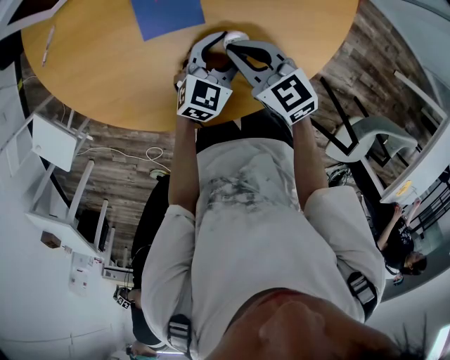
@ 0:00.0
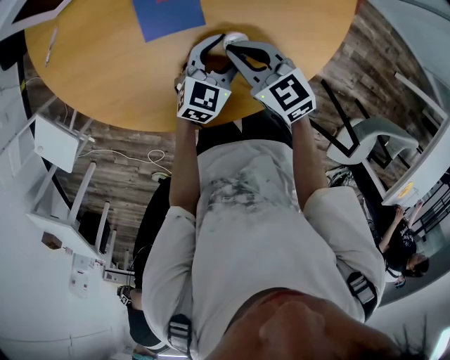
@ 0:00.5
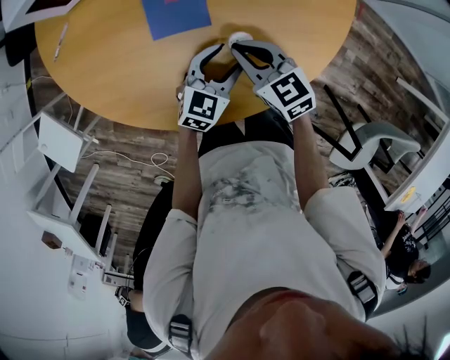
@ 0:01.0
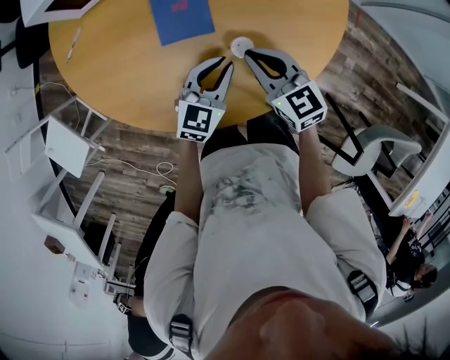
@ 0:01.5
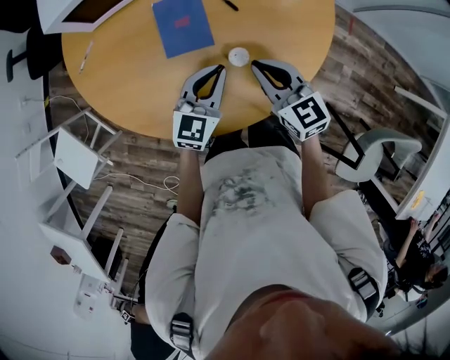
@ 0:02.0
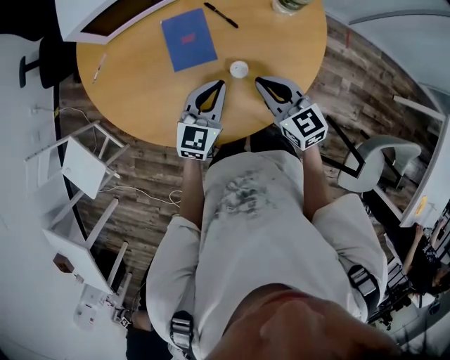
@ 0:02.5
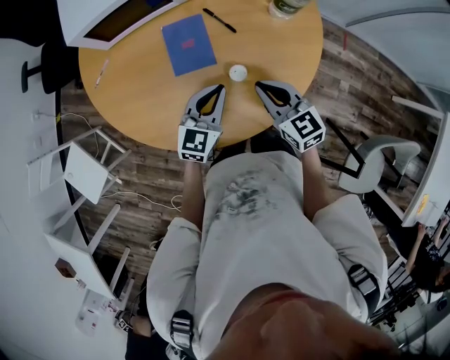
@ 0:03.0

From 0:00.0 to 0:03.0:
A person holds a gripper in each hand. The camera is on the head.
From 0:00.0 to 0:01.5: The left gripper travels upward by some 5 cm, and closes up.
From 0:01.5 to 0:03.0: Both grippers travel together upward, some 10 cm.

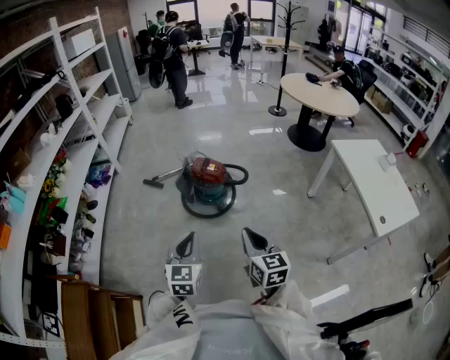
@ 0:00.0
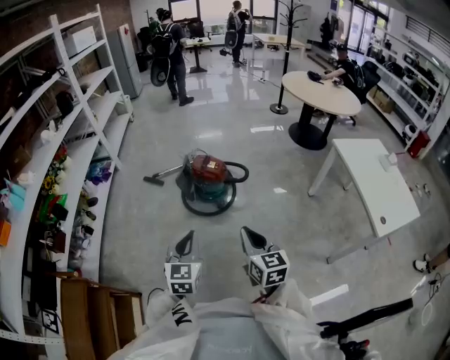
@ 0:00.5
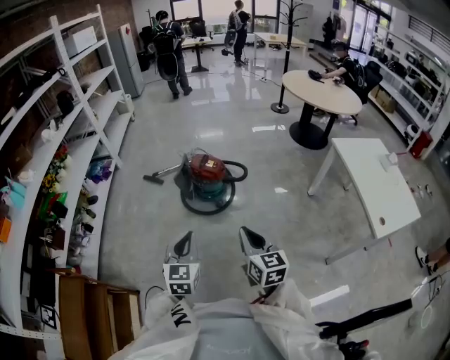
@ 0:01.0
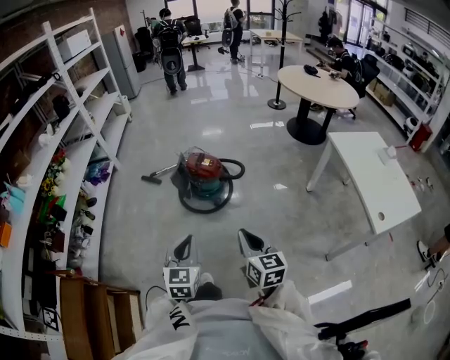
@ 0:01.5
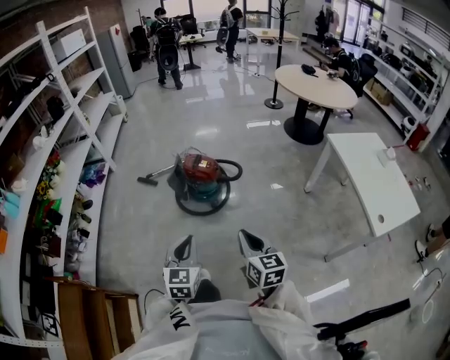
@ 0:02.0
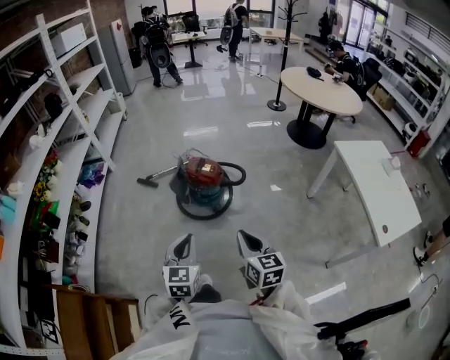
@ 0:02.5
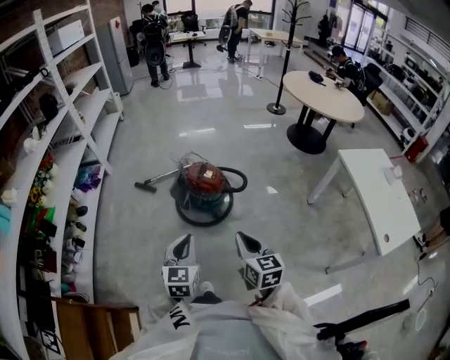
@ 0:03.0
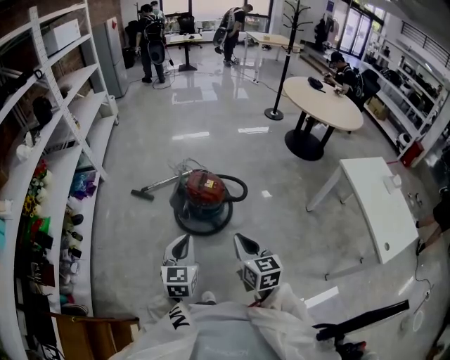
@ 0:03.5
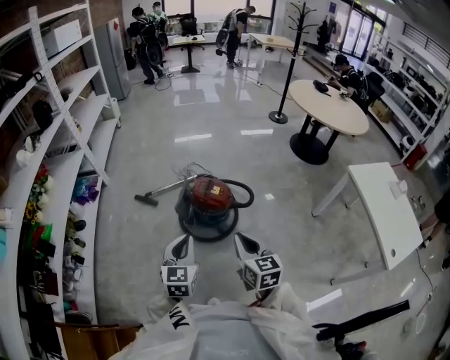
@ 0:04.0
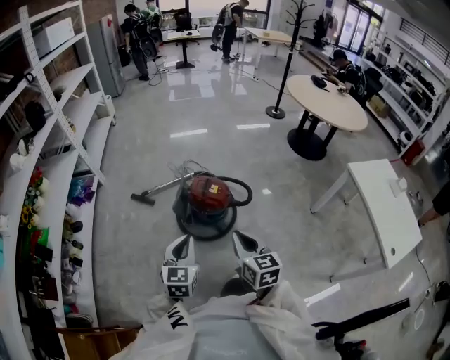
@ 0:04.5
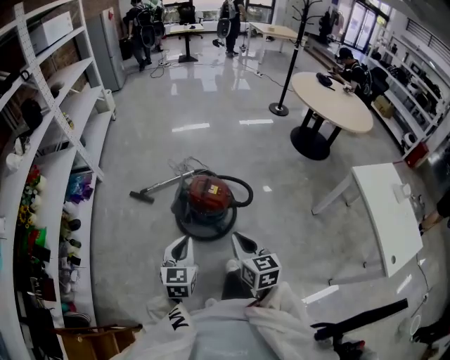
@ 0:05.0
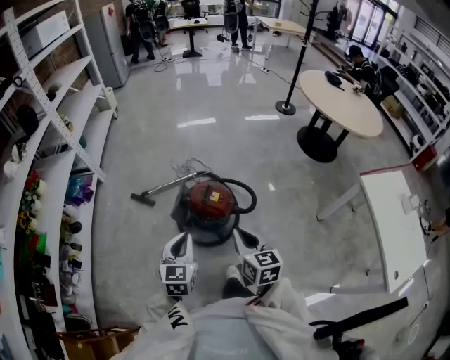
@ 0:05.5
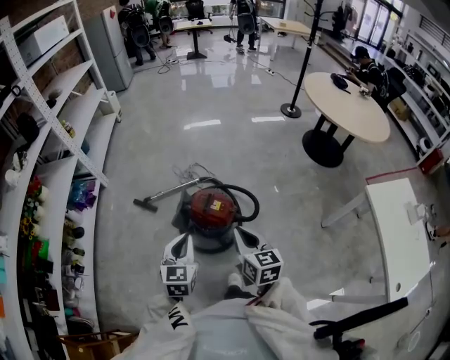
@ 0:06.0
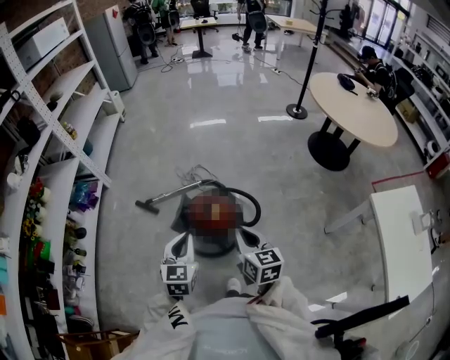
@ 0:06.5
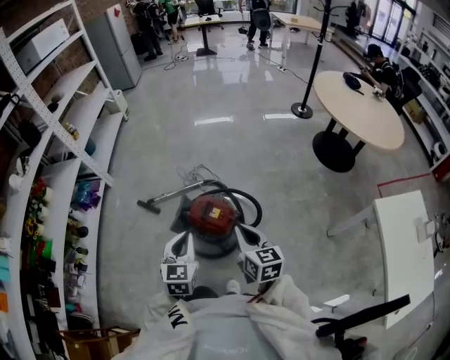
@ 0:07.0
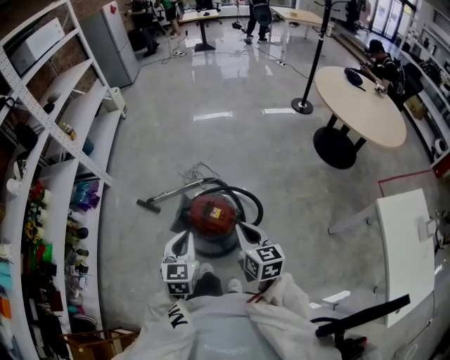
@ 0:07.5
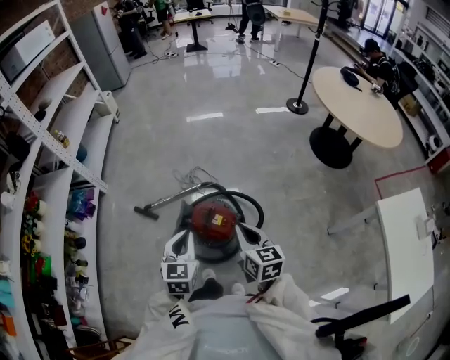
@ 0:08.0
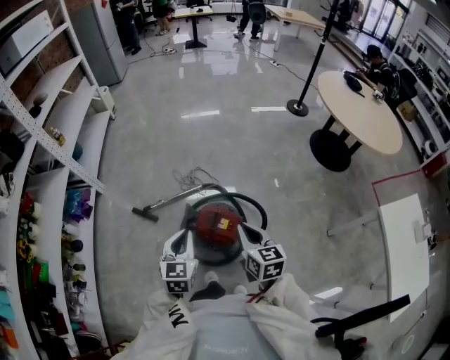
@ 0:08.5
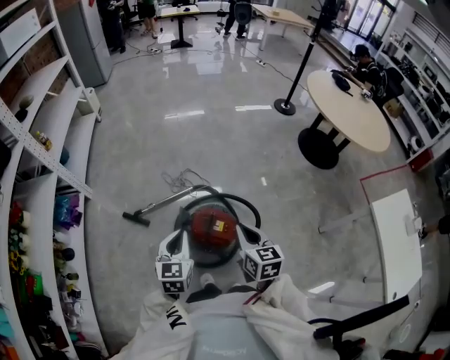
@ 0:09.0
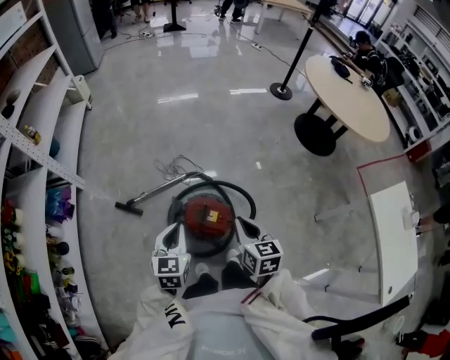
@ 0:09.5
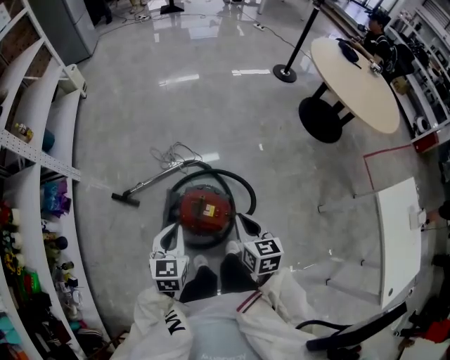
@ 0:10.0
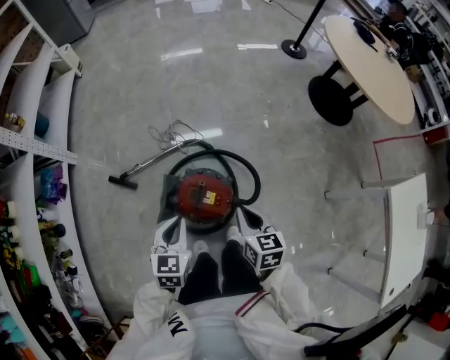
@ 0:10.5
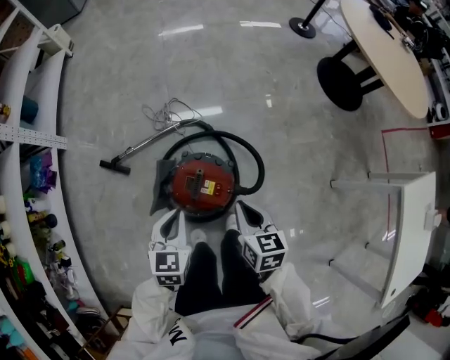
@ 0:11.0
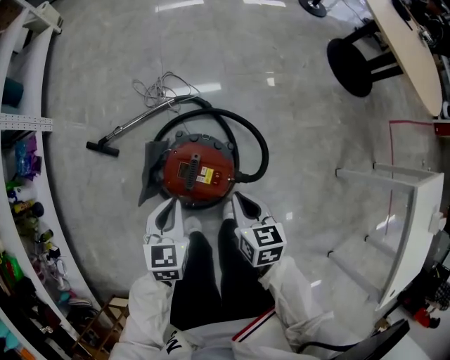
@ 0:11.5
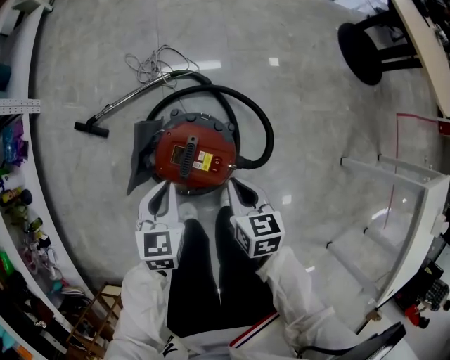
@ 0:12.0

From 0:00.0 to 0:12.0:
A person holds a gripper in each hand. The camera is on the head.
From 0:00.0 to 0:02.0: The grippers stay close to where they were, moving slightly.
From 0:02.0 to 0:04.0: Both grippers travel together forward and to the left, approximately 25 cm.
From 0:04.0 to 0:06.0: Both grippers travel together forward, approximately 15 cm.
From 0:06.0 to 0:08.0: Both grippers move forward, about 10 cm.
From 0:08.0 to 0:10.0: The left gripper is displaced forward and downward by roughly 10 cm; the right gripper shifts approximately 10 cm downward and forward.
From 0:10.0 to 0:12.0: The two grippers go some 20 cm downward.

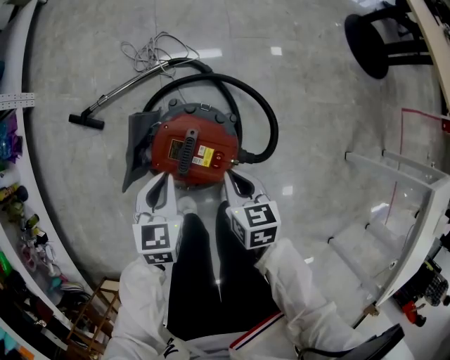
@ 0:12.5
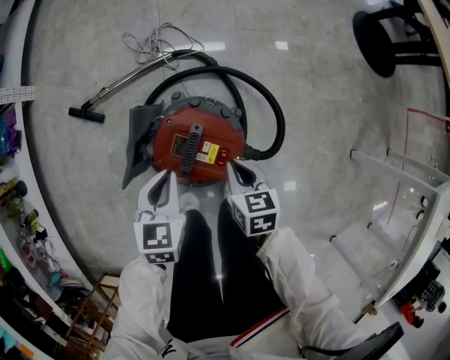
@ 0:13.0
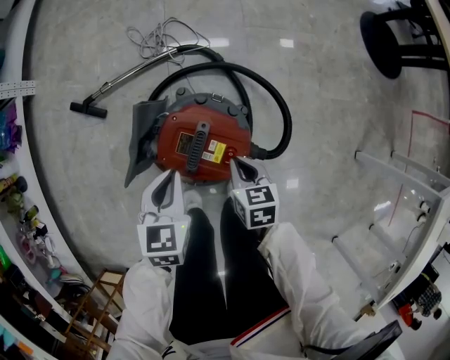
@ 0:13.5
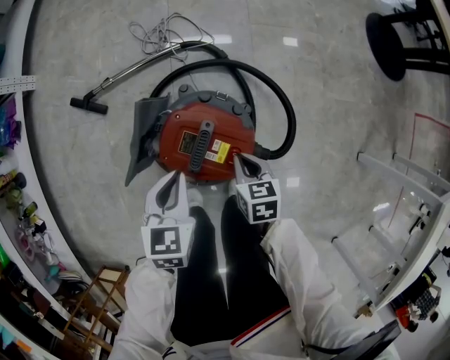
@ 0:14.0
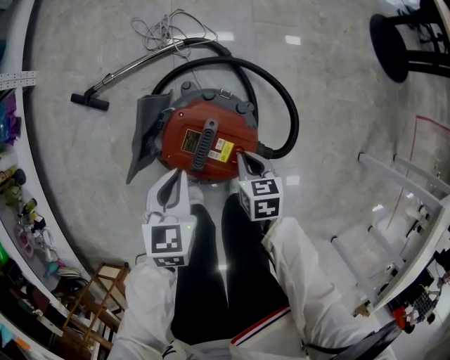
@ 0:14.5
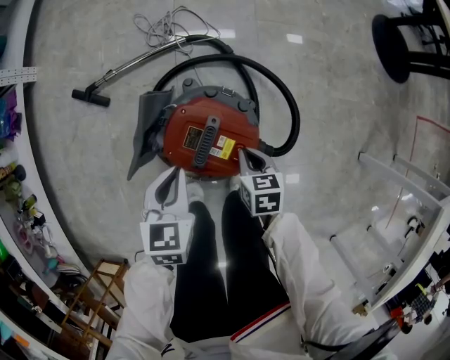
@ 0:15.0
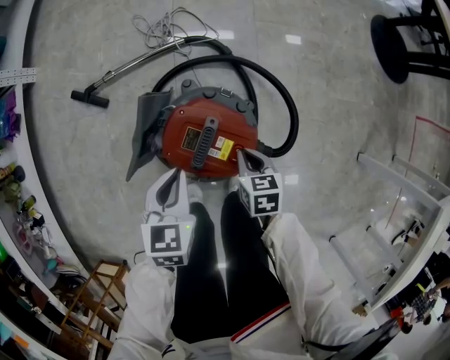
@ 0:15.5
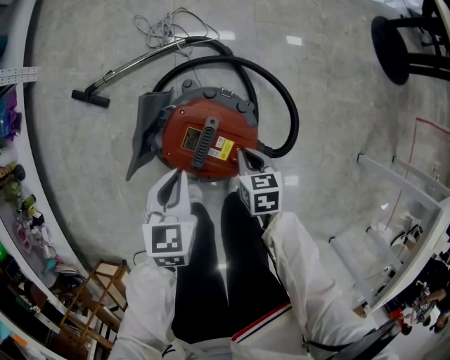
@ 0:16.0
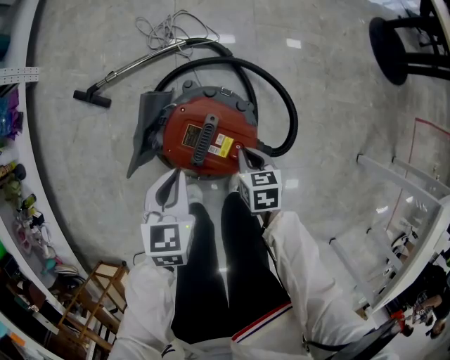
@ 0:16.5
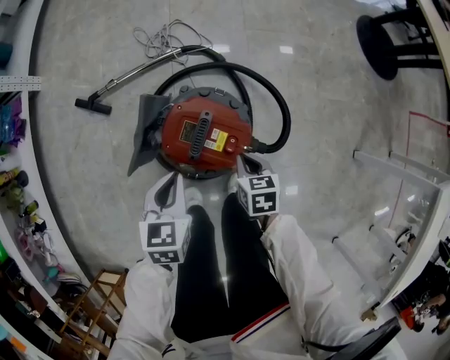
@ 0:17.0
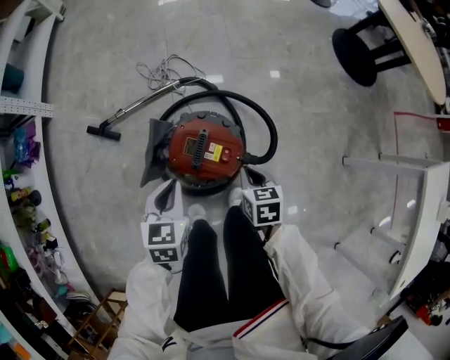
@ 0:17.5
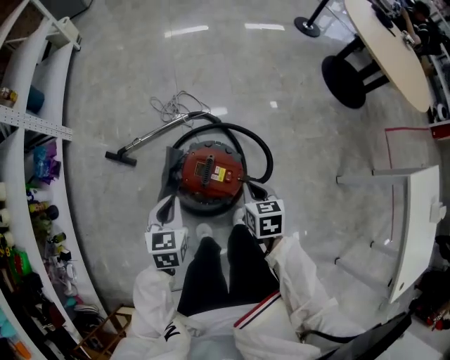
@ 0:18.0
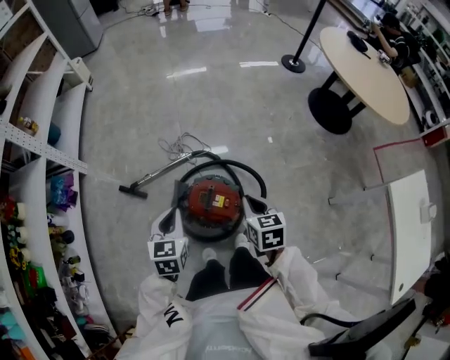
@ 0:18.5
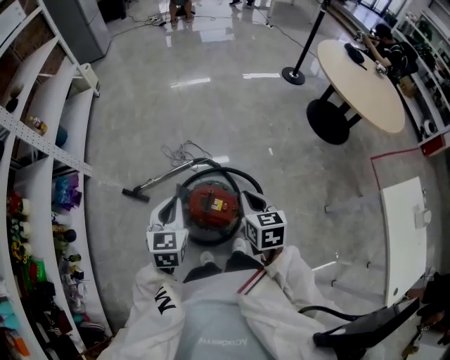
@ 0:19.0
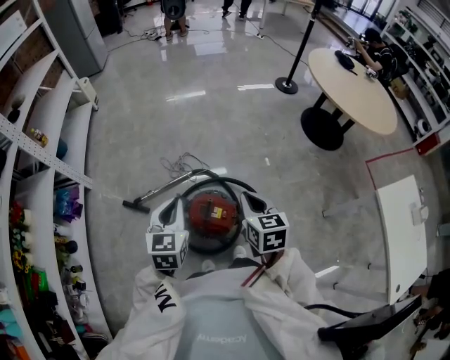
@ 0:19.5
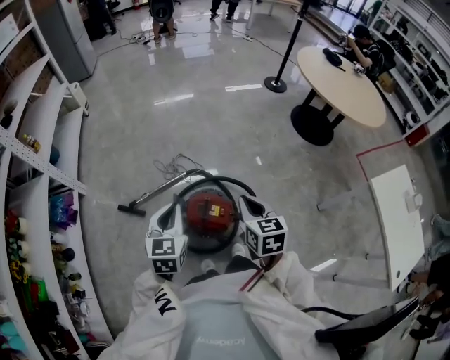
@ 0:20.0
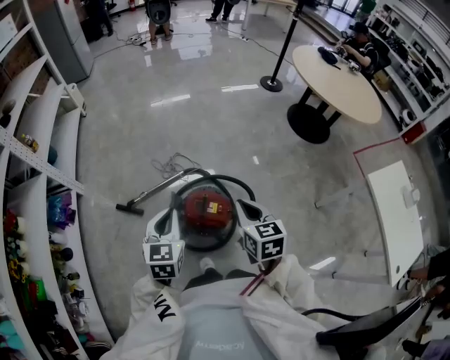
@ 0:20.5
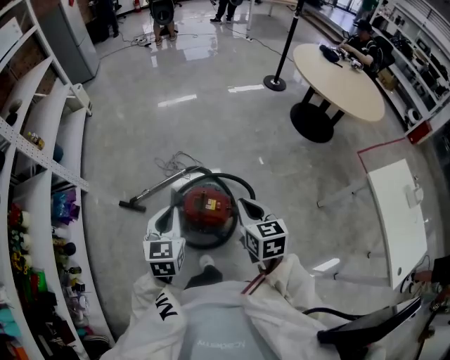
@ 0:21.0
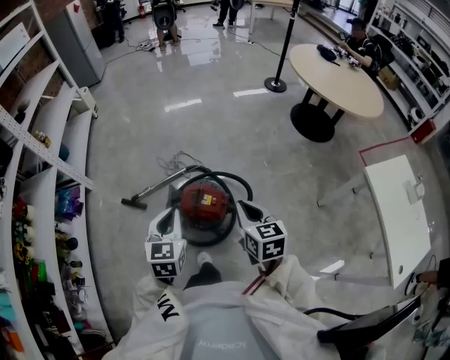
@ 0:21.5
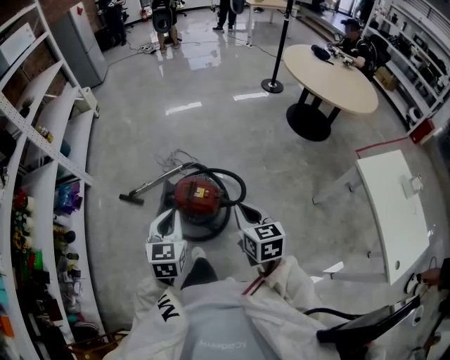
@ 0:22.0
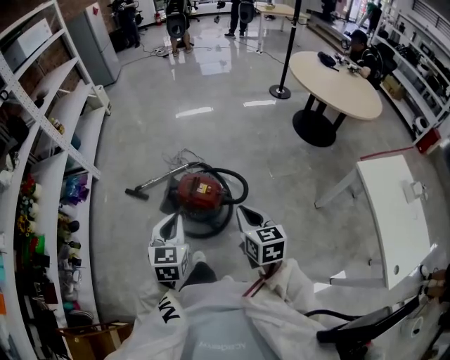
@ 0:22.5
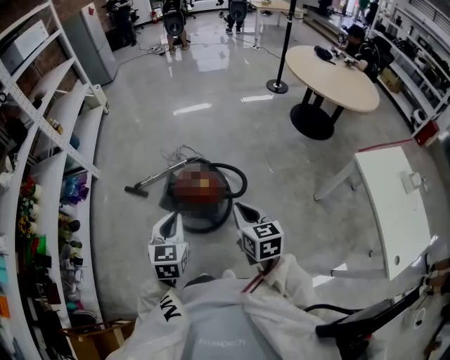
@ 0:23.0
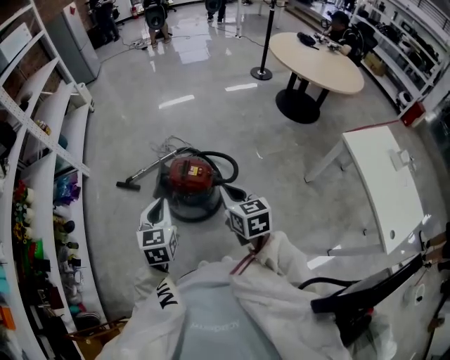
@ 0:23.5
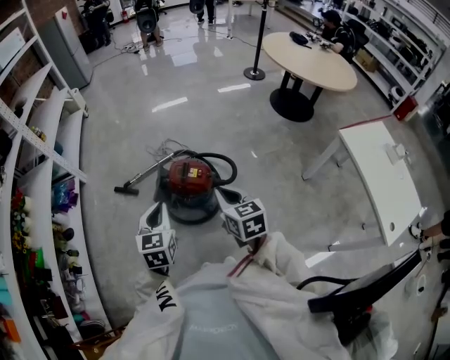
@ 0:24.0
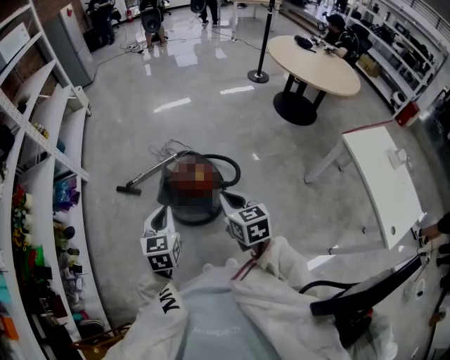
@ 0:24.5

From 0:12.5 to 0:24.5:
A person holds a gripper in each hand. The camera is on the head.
From 0:12.5 to 0:14.5: The right gripper travels downward by approximately 10 cm.
From 0:14.5 to 0:16.5: The two grippers keep their place.
From 0:16.5 to 0:18.5: The two grippers go about 30 cm upward. The right gripper rotates some 20 degrees.
From 0:18.5 to 0:20.5: Both grippers travel together upward, roughly 10 cm.
From 0:20.5 to 0:22.5: Both grippers travel together backward and to the right, some 20 cm.
From 0:22.5 to 0:24.5: Both grippers move to the left, roughly 5 cm.
